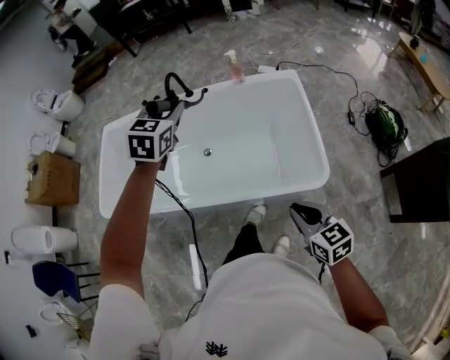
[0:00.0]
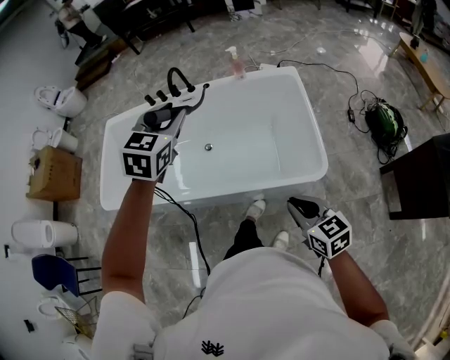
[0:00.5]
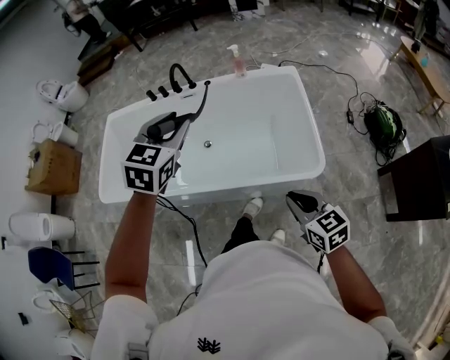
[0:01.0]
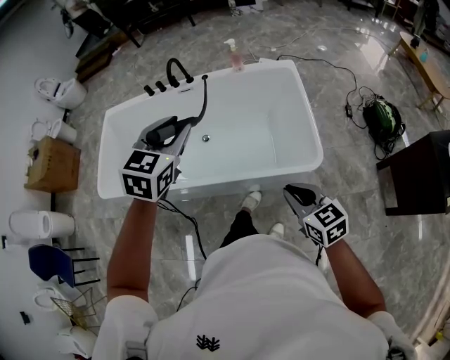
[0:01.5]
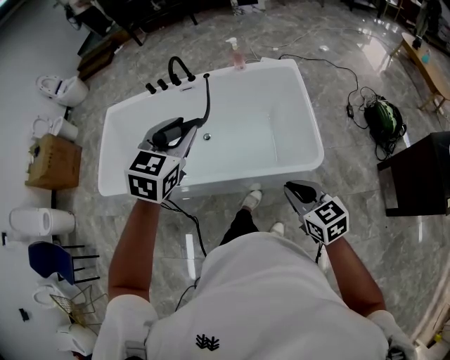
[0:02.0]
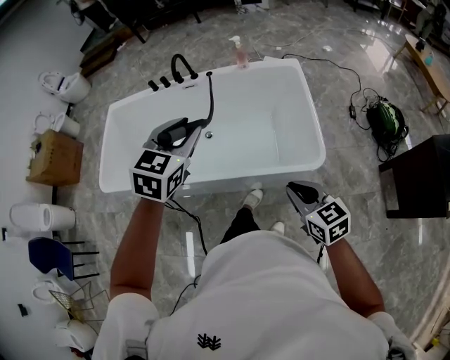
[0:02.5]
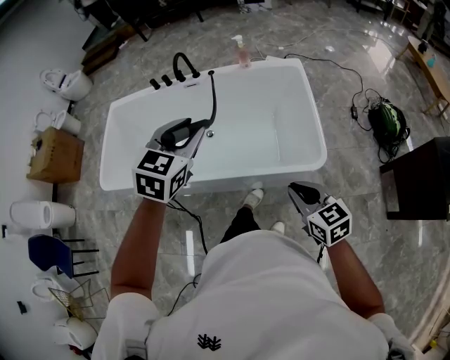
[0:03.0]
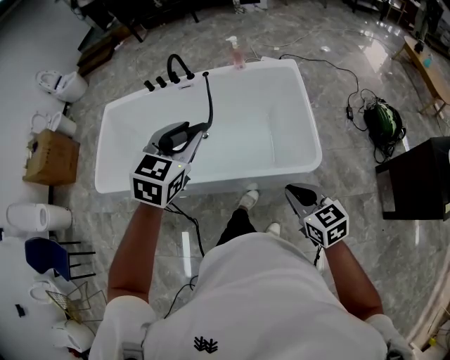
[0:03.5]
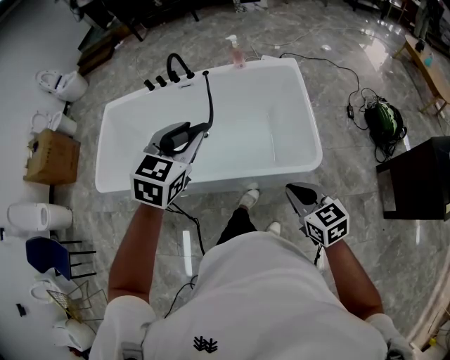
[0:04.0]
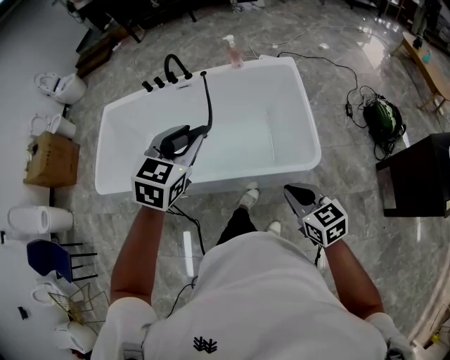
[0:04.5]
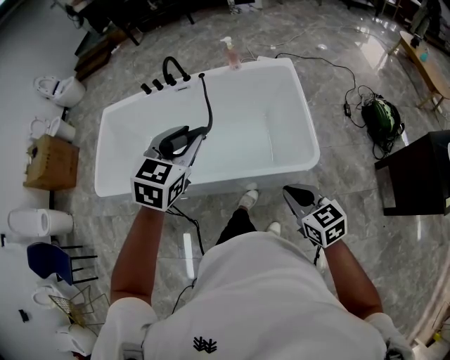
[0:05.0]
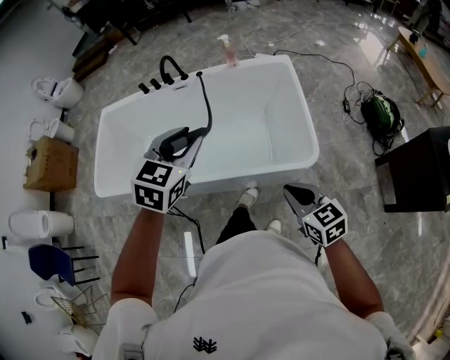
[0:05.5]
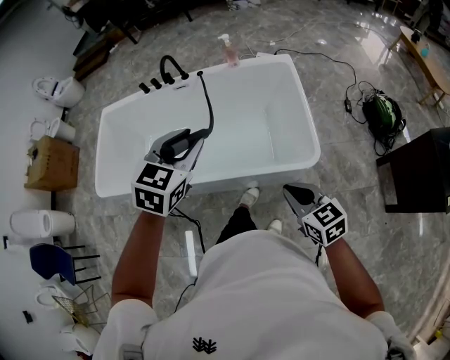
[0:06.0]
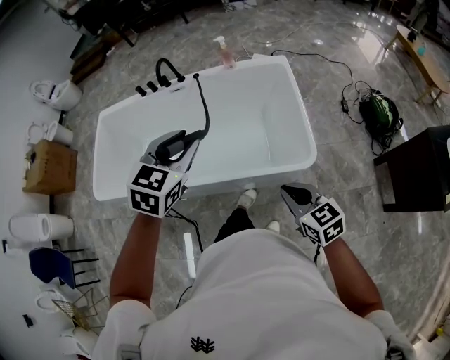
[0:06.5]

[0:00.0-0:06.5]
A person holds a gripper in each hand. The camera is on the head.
0:00.0 to 0:02.0: The left gripper travels backward by about 20 cm.
0:02.0 to 0:06.5: The grippers stay close to where they were, moving slightly.

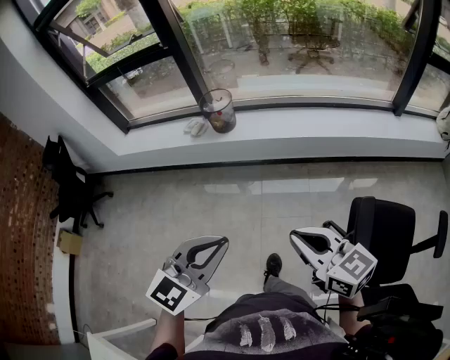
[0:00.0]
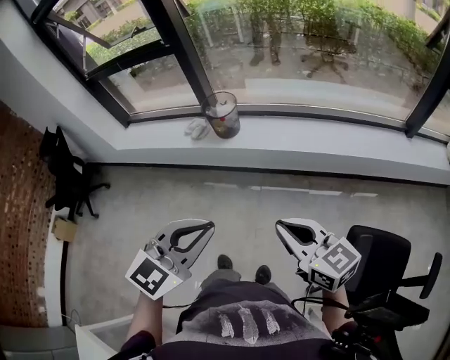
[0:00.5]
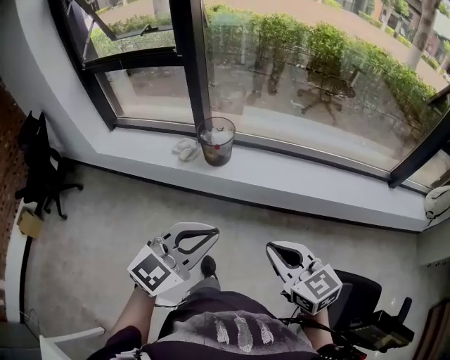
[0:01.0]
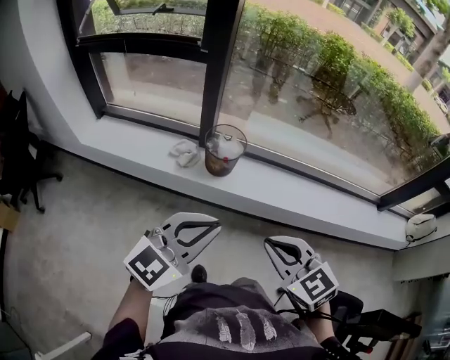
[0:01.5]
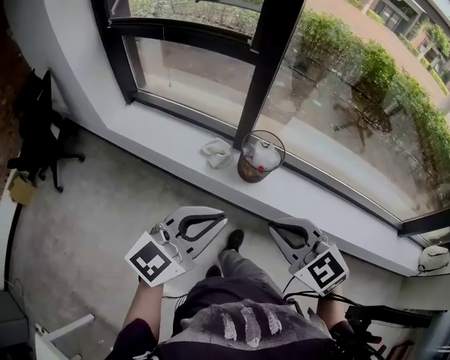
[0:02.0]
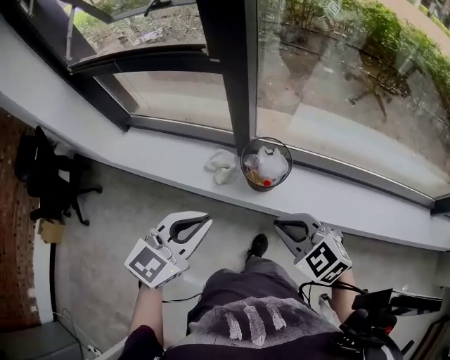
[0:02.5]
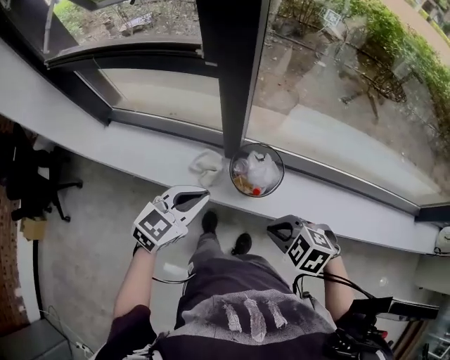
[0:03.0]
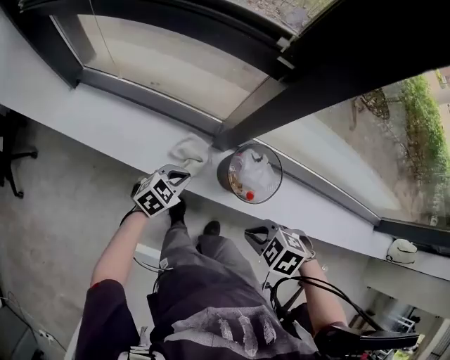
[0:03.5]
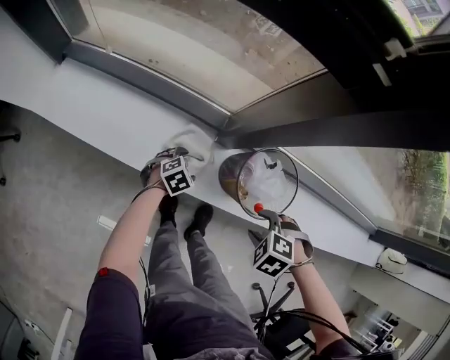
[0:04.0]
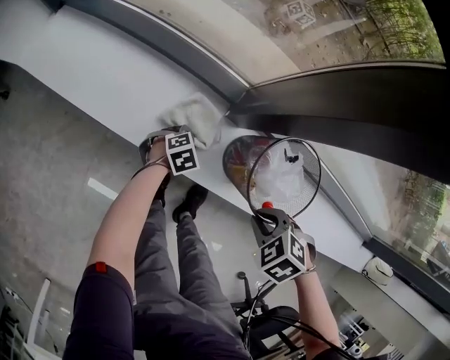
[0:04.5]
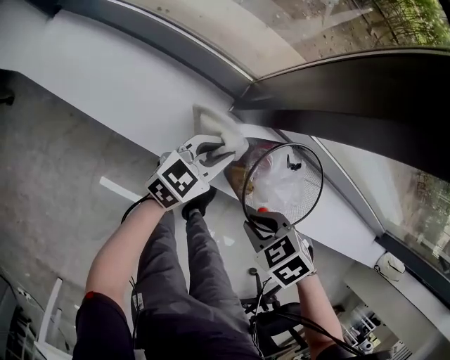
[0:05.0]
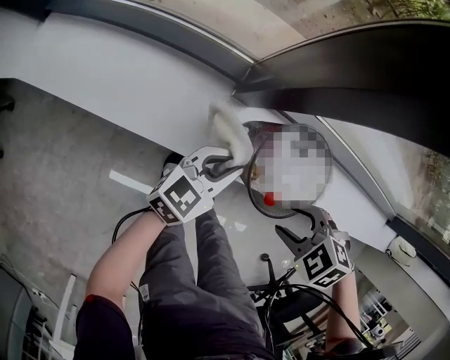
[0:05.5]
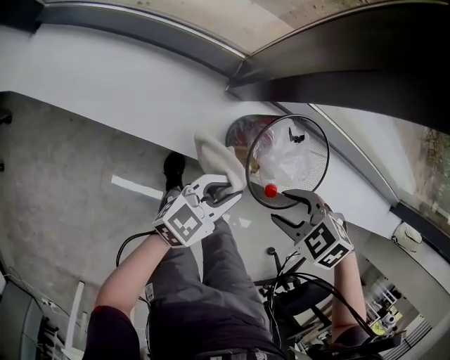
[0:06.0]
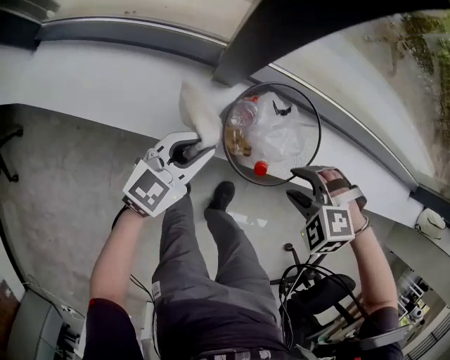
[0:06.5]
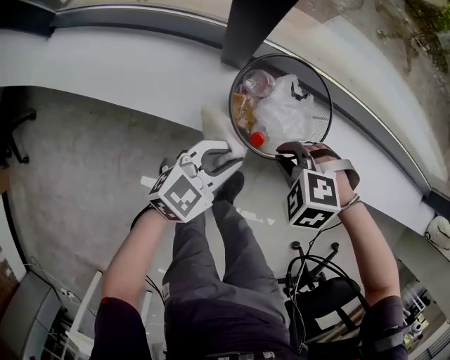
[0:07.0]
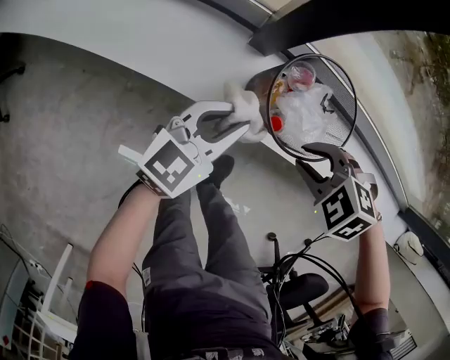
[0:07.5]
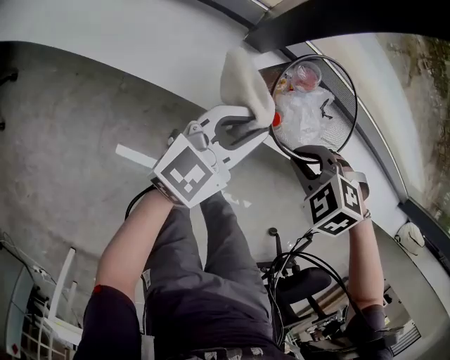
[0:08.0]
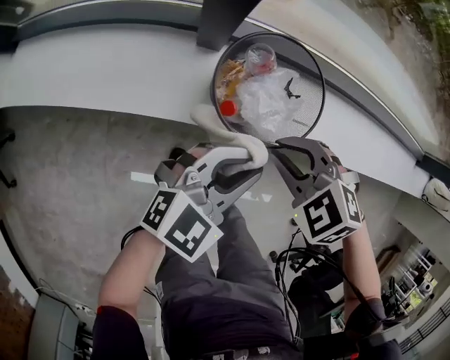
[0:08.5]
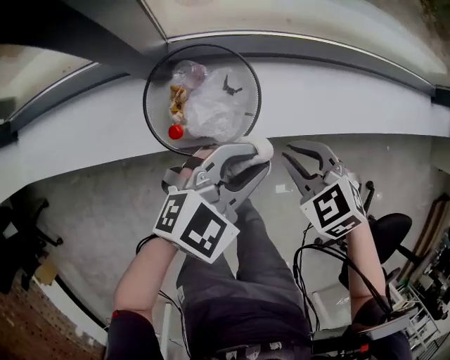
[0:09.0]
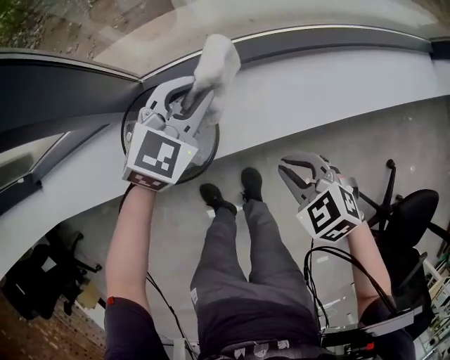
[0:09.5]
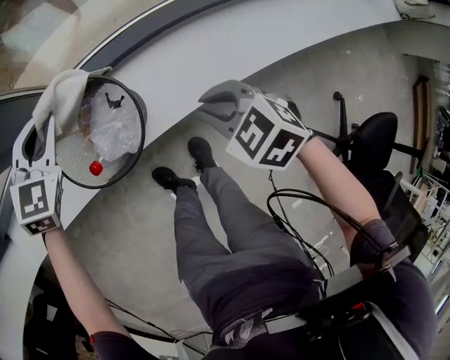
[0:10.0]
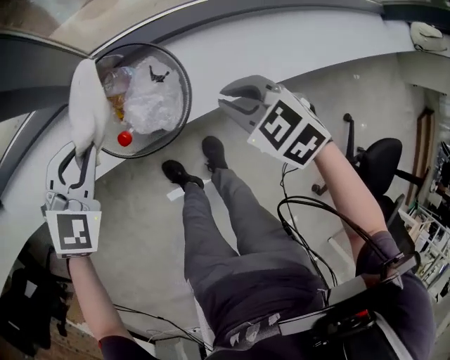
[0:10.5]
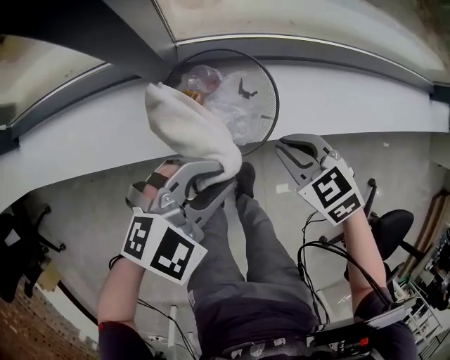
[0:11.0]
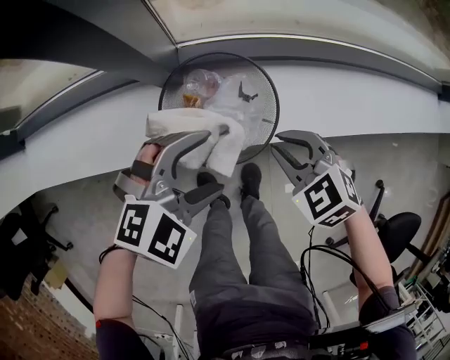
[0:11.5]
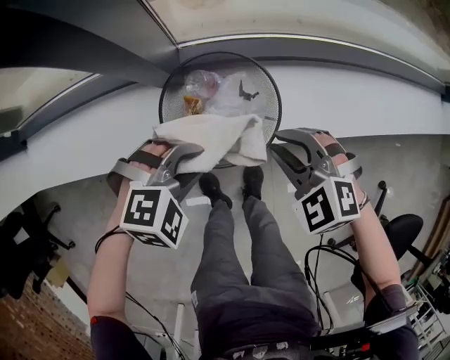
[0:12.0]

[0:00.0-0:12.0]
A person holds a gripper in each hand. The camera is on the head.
0:00.0 to 0:02.0: The two grippers travel together, forward and to the left, about 50 cm. The left gripper changes its angle by approximately 20 degrees. Meanwhile the right gripper changes its angle by approximately 40 degrees.
0:02.0 to 0:04.0: The left gripper is displaced downward by some 60 cm, points its fingers some 60 degrees further downward, and opens. Meanwhile the right gripper goes approximately 35 cm downward, points its fingers about 60 degrees further downward, and opens its fingers.
0:04.0 to 0:06.0: The right gripper turns by roughly 20 degrees, and closes, then reopens; the left gripper heads upward, covering approximately 15 cm, angles its fingers upward, by approximately 40 degrees, and closes.
0:06.0 to 0:08.0: The left gripper shifts by about 5 cm, while the right gripper swivels some 20 degrees, and closes its fingers.
0:08.0 to 0:10.0: The right gripper changes place by some 15 cm, and rotates around the line of its fingers by approximately 50 degrees, clockwise from behind. The left gripper shifts by about 20 cm, and rotates roughly 50 degrees.
0:10.0 to 0:12.0: The right gripper shifts about 10 cm to the left, and rotates some 30 degrees, while the left gripper moves backward, some 20 cm, swivels some 40 degrees, and opens, then closes once more.

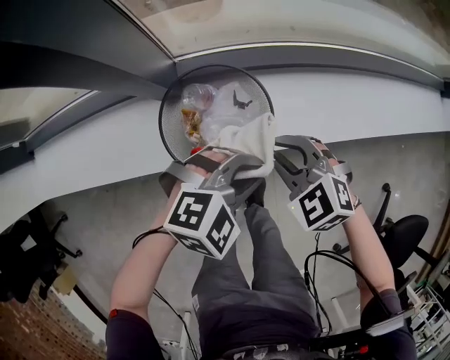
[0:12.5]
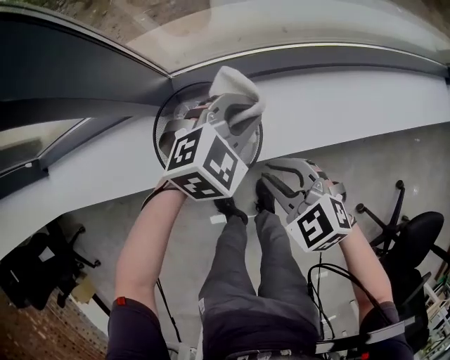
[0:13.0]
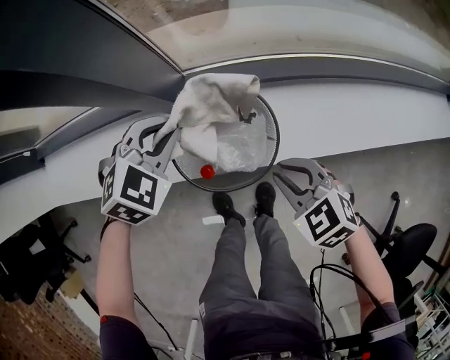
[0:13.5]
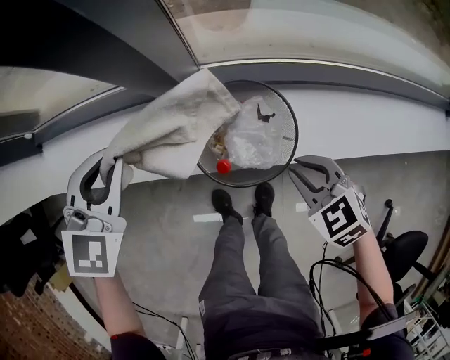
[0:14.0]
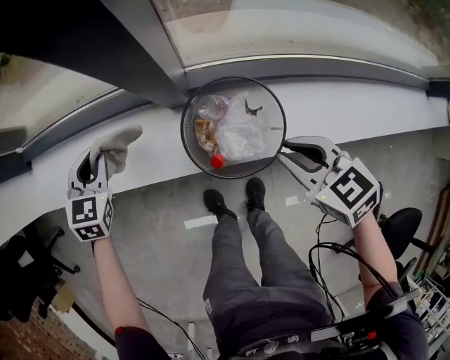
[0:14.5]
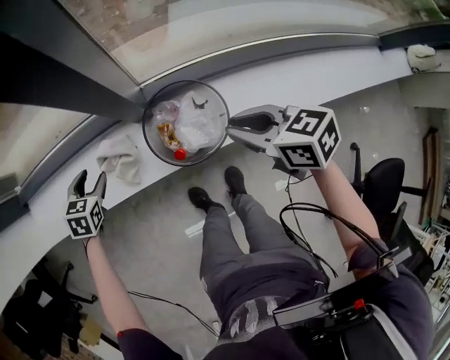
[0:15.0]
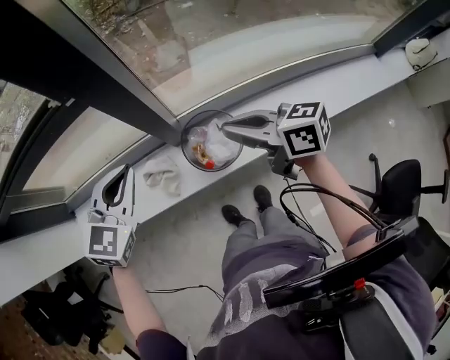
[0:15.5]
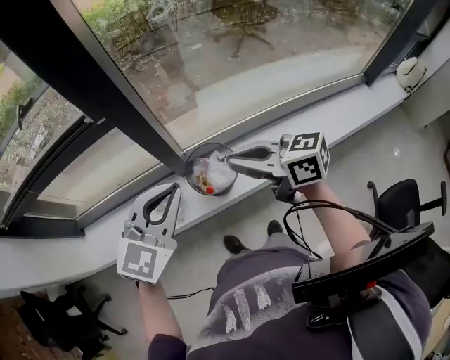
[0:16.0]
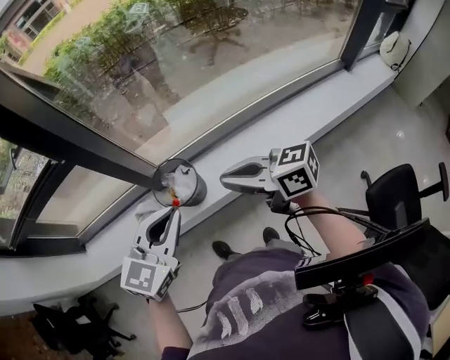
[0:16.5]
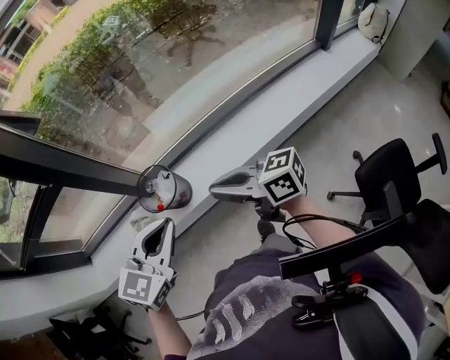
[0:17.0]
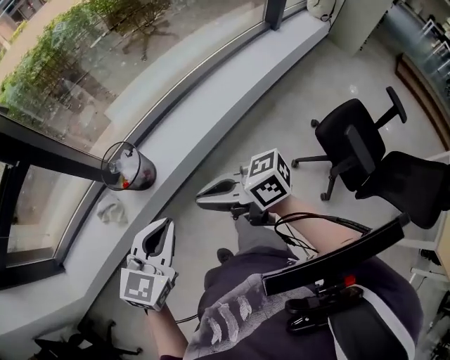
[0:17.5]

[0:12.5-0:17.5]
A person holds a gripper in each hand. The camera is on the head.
0:12.5 to 0:15.0: The left gripper changes place by about 40 cm, rotates some 60 degrees, and opens up; the right gripper is displaced upward by about 10 cm, and rotates around the line of its fingers by some 40 degrees, clockwise from behind.
0:15.0 to 0:17.5: The right gripper goes approximately 40 cm backward and upward, and tilts its fingers some 30 degrees upward; the left gripper shifts approximately 60 cm backward, upward and to the right, tips its fingers upward by approximately 30 degrees, and closes its fingers.

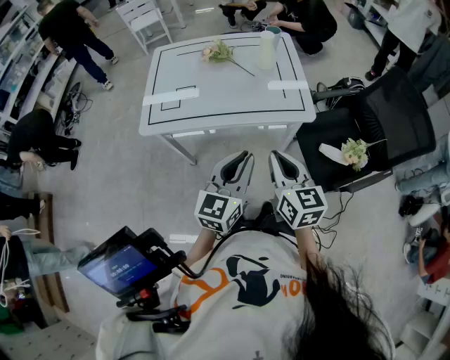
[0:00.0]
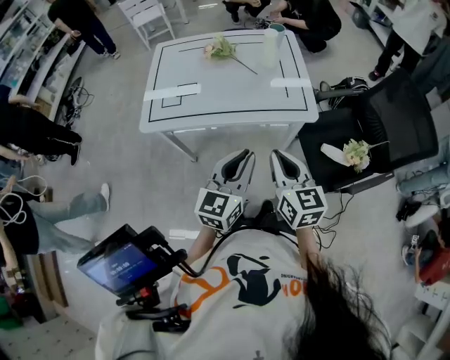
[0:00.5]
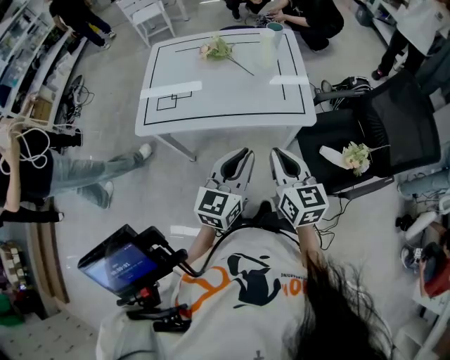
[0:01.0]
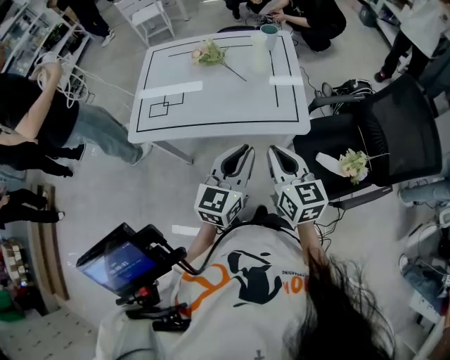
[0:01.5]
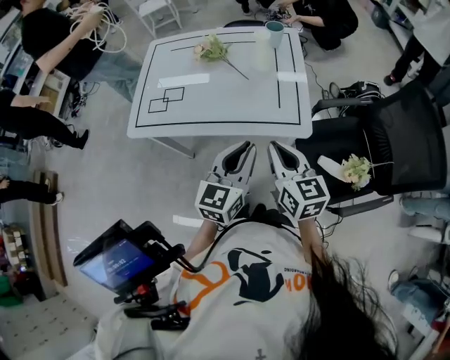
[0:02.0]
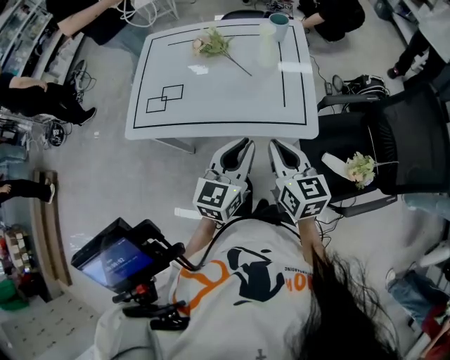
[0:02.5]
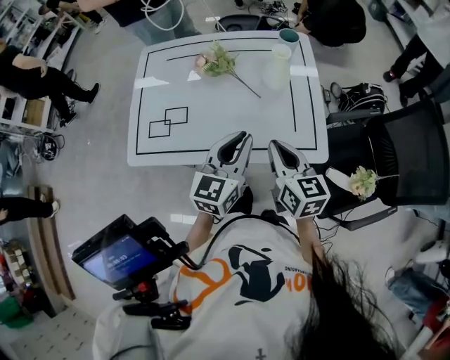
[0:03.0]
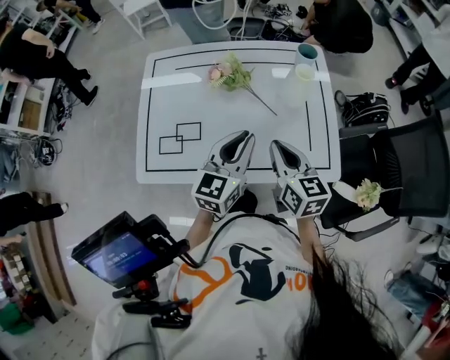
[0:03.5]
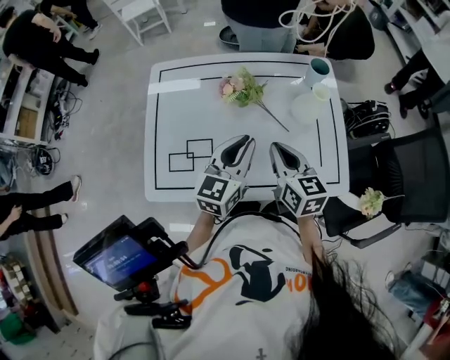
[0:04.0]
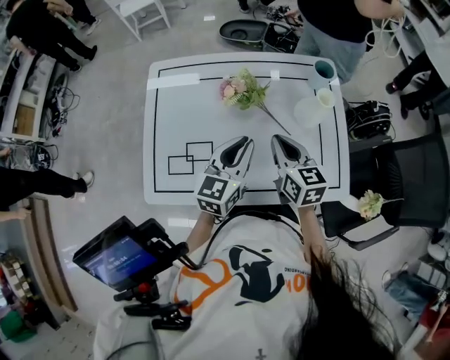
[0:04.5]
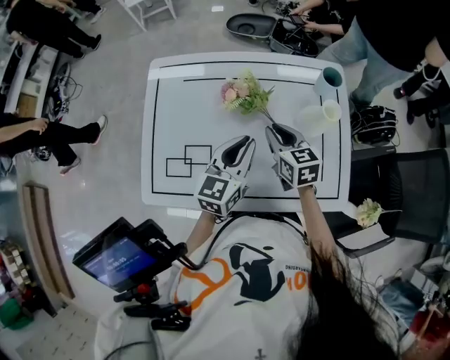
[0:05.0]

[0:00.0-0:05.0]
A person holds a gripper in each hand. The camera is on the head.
0:00.0 to 0:02.5: The two grippers go approximately 15 cm forward and to the right.
0:02.5 to 0:05.0: The grippers both shift forward and to the left by approximately 35 cm.
